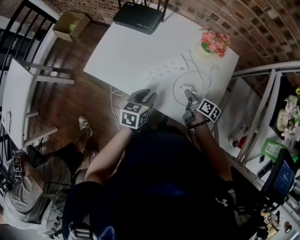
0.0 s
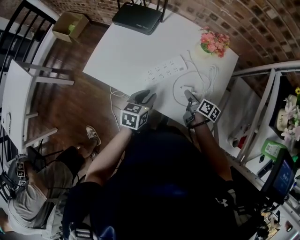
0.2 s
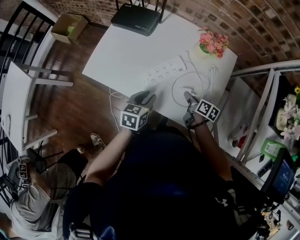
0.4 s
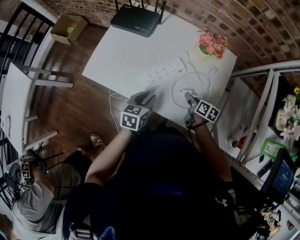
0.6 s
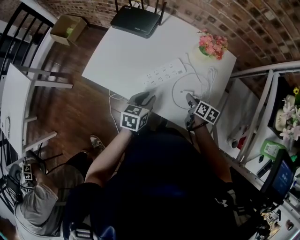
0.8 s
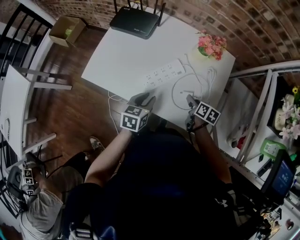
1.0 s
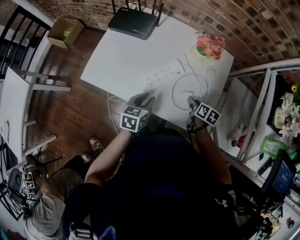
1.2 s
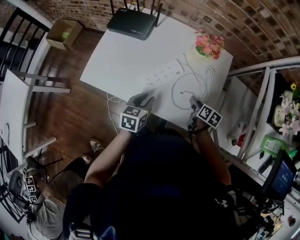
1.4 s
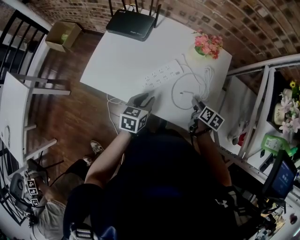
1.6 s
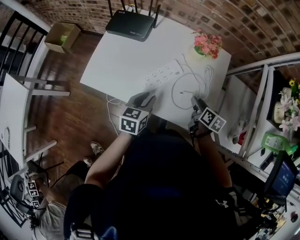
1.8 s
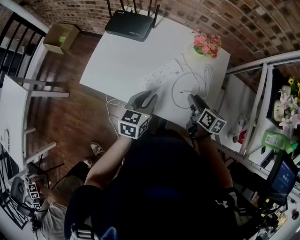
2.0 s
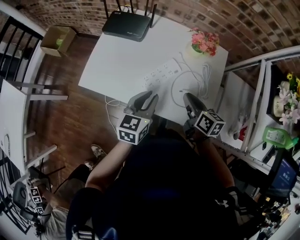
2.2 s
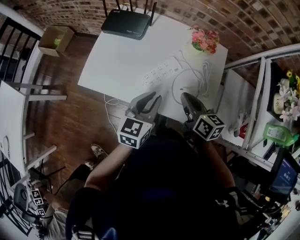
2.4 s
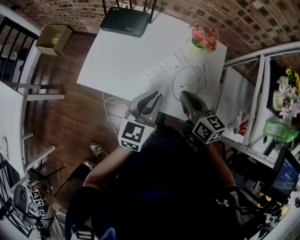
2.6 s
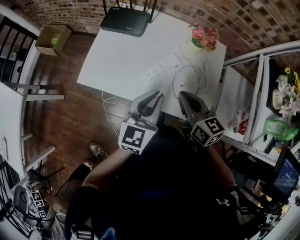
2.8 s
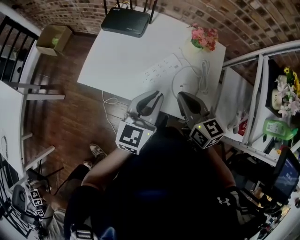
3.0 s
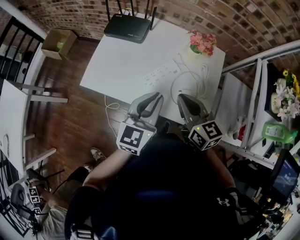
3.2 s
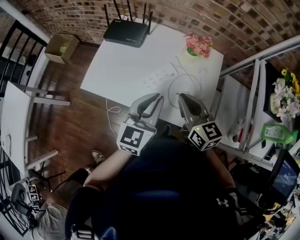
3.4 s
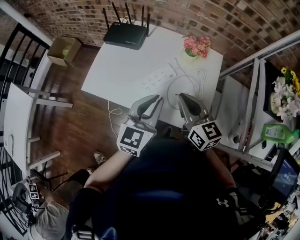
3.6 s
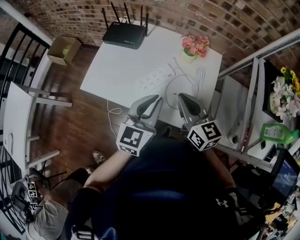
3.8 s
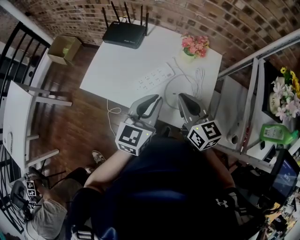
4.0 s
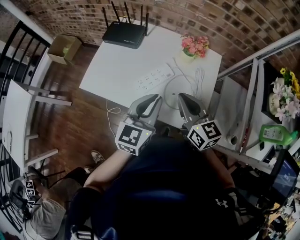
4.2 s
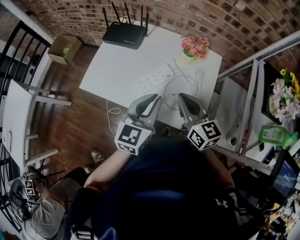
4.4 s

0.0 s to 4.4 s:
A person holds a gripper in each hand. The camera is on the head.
0.0 to 1.4 s: The right gripper travels to the right by roughly 5 cm, and changes its angle by approximately 20 degrees.
1.4 to 3.0 s: The left gripper travels upward by some 15 cm, and changes its angle by about 30 degrees; the right gripper travels upward and to the left by some 30 cm, tips its fingers upward by roughly 30 degrees, and closes its fingers.
3.0 to 4.4 s: Both grippers move to the right, approximately 5 cm.

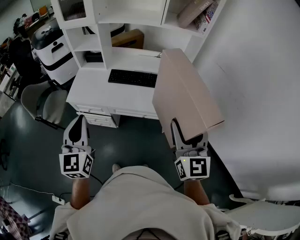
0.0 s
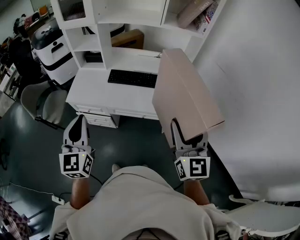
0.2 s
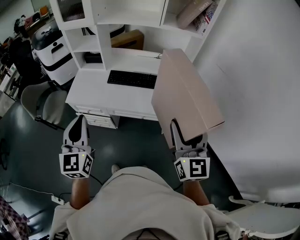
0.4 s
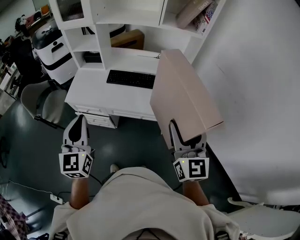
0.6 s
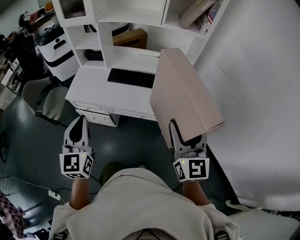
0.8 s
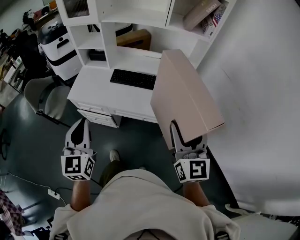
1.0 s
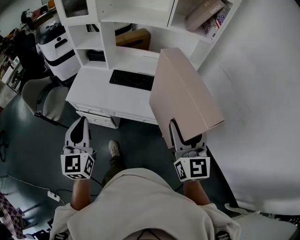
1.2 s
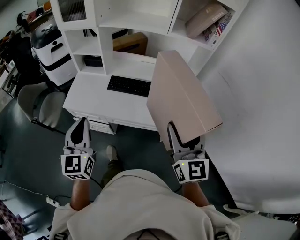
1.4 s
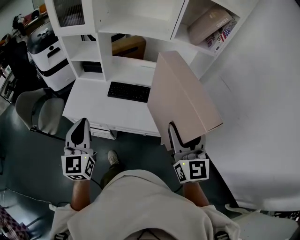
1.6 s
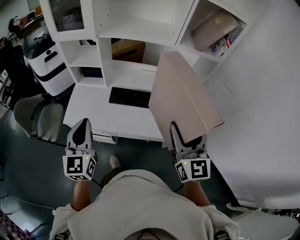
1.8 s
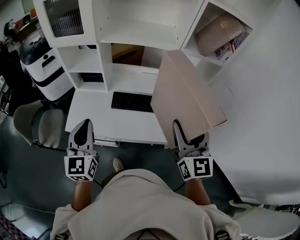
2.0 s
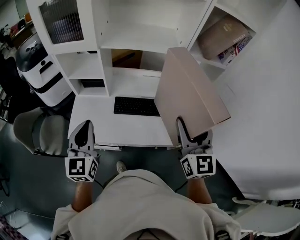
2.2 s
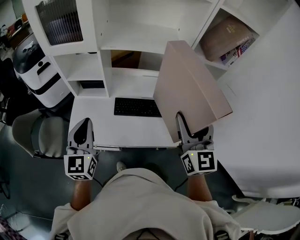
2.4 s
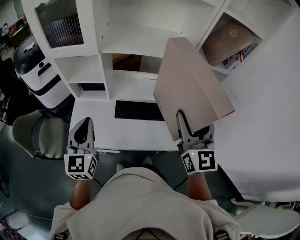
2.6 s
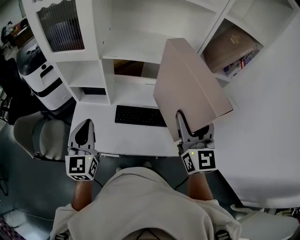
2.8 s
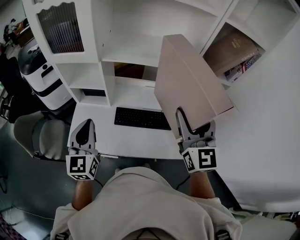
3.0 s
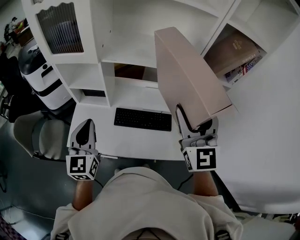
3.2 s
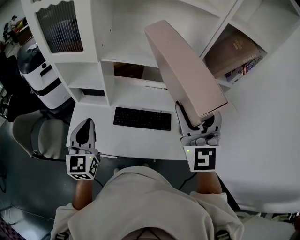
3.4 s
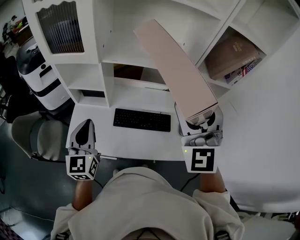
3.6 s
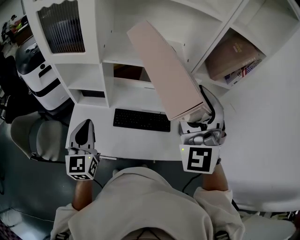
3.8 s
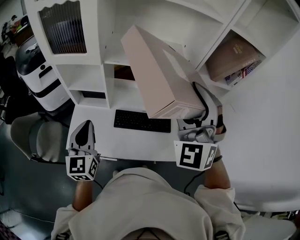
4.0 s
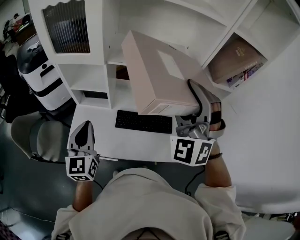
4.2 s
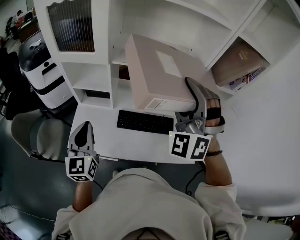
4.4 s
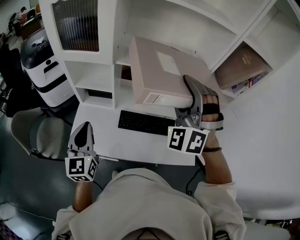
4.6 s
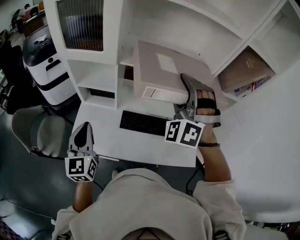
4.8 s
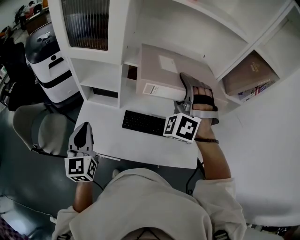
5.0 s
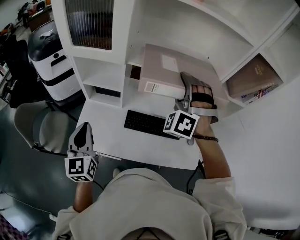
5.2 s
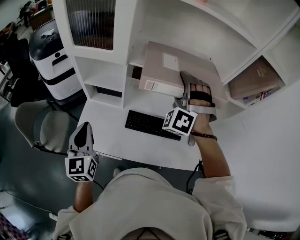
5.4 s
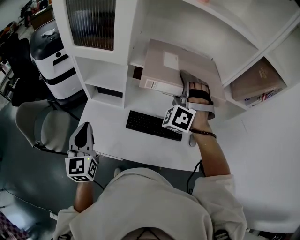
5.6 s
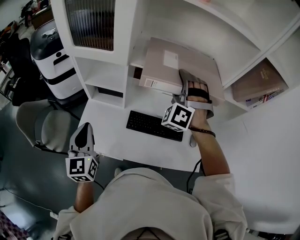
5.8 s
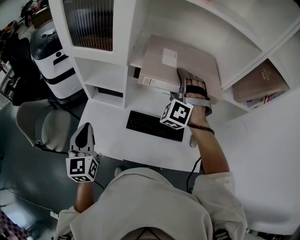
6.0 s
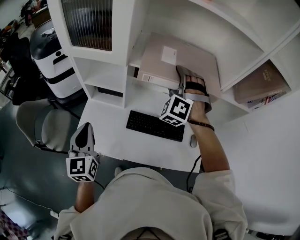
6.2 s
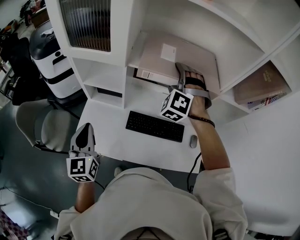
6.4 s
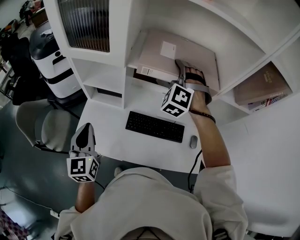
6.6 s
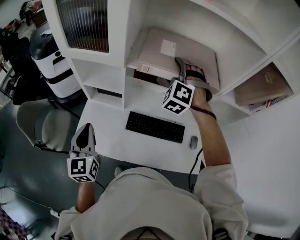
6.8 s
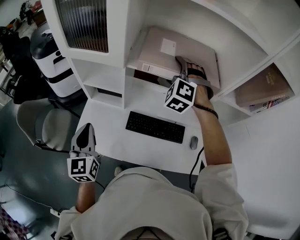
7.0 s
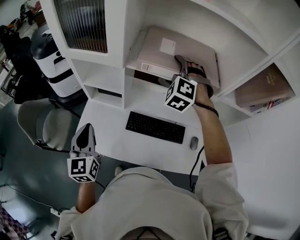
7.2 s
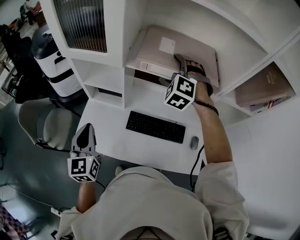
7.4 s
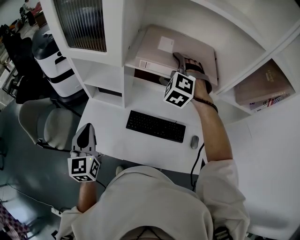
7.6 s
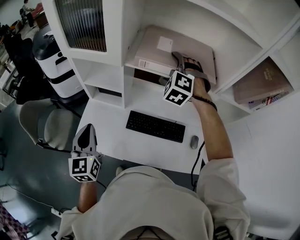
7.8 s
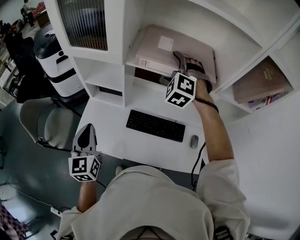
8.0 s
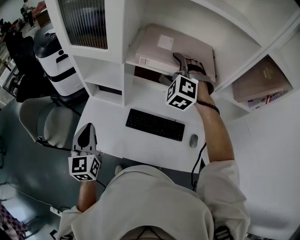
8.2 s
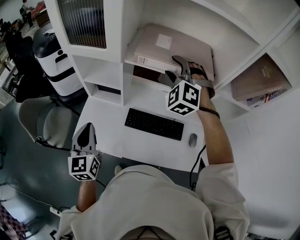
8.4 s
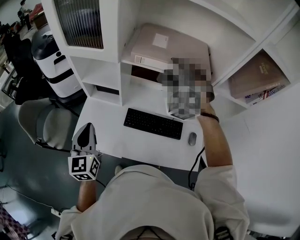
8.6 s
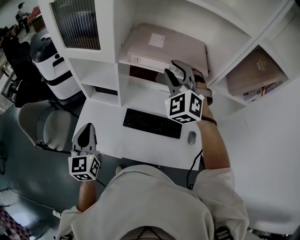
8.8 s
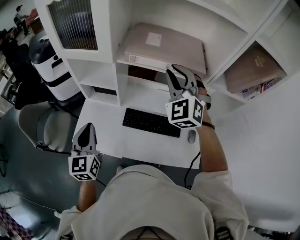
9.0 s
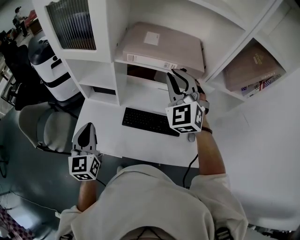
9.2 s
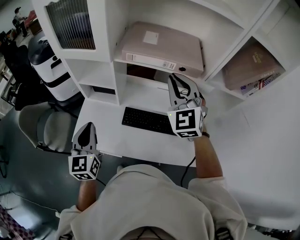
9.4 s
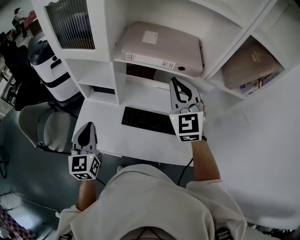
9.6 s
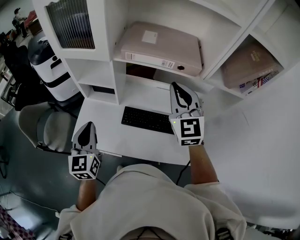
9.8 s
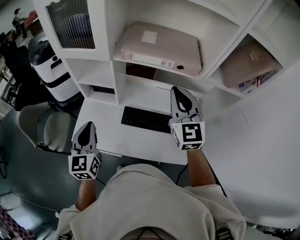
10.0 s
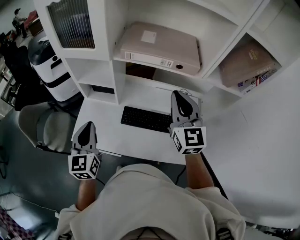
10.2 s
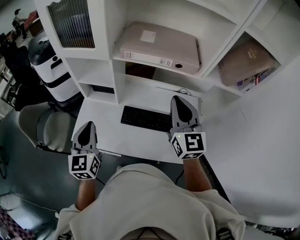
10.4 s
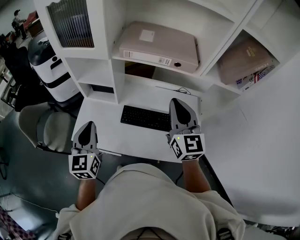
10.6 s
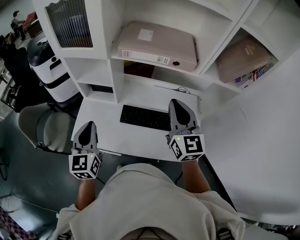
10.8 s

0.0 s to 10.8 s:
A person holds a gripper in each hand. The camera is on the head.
0.0 to 1.6 s: Both grippers move forward, about 15 cm.
1.6 to 3.0 s: Both grippers travel together forward, some 25 cm.
3.0 to 4.6 s: The left gripper is displaced to the left by some 5 cm. The right gripper moves to the left and forward, roughly 15 cm, and twists about 70 degrees counterclockwise, seen from behind.
4.6 to 6.2 s: The right gripper travels forward and downward by approximately 20 cm.
6.2 to 7.8 s: The grippers stay close to where they were, moving slightly.
7.8 to 9.2 s: The right gripper is displaced backward and upward by some 15 cm, turns by approximately 40 degrees, and closes its fingers.
9.2 to 10.8 s: The right gripper moves backward, approximately 10 cm, and rolls clockwise, seen from behind, by roughly 40 degrees.

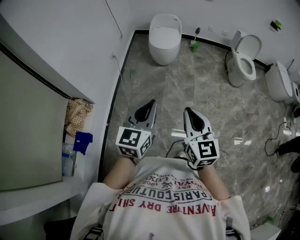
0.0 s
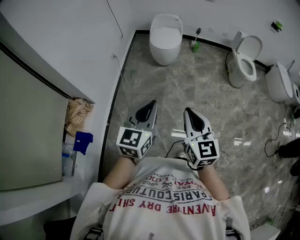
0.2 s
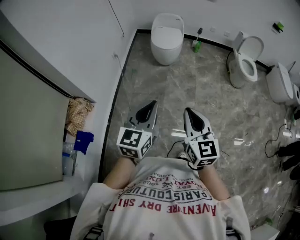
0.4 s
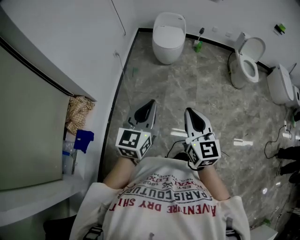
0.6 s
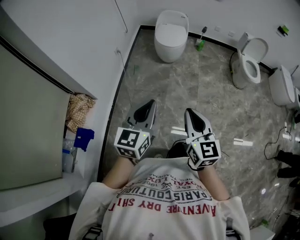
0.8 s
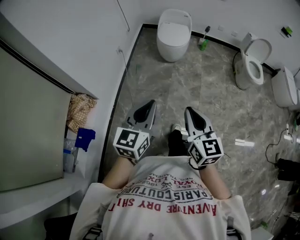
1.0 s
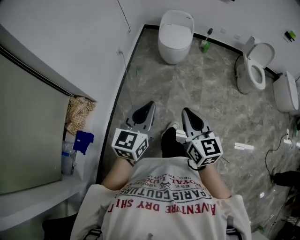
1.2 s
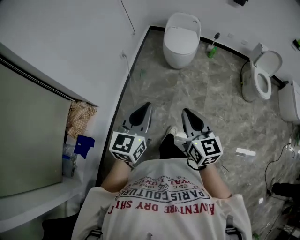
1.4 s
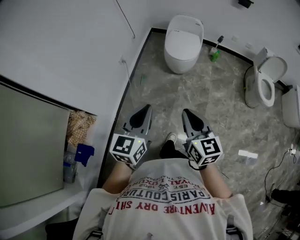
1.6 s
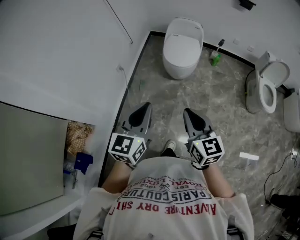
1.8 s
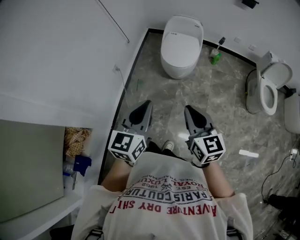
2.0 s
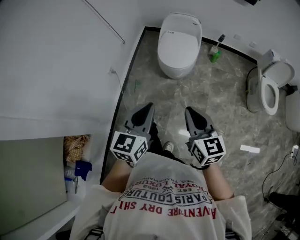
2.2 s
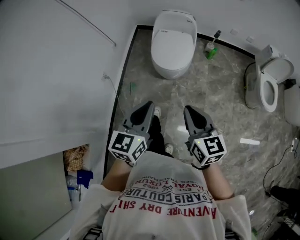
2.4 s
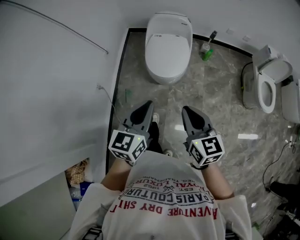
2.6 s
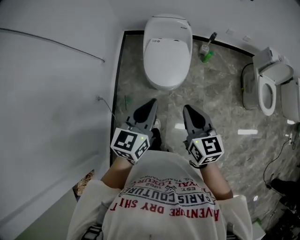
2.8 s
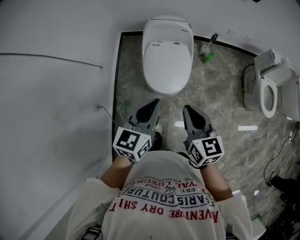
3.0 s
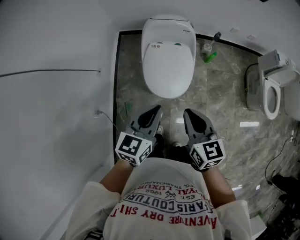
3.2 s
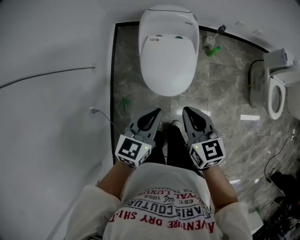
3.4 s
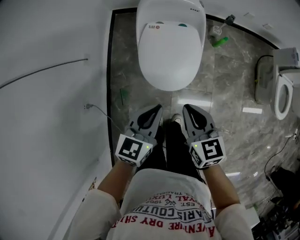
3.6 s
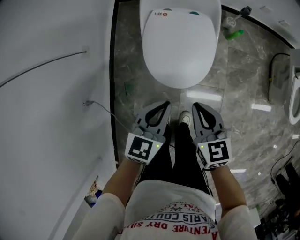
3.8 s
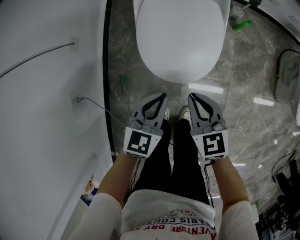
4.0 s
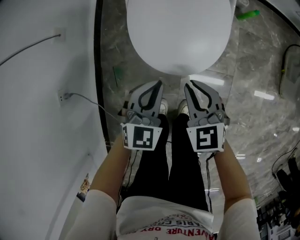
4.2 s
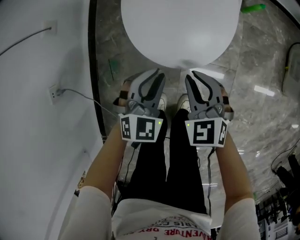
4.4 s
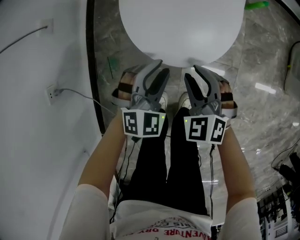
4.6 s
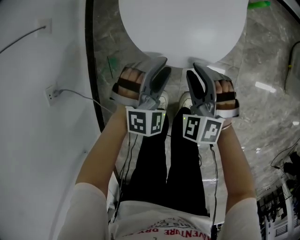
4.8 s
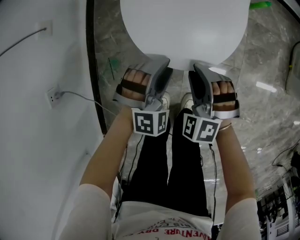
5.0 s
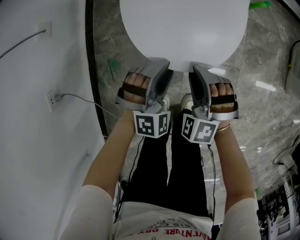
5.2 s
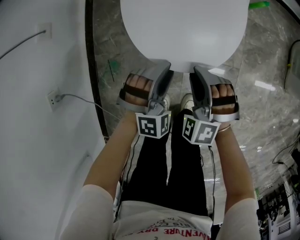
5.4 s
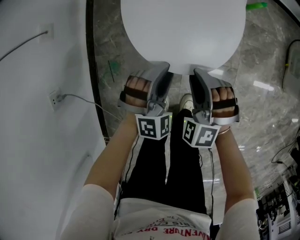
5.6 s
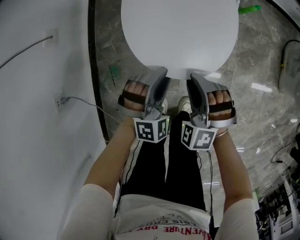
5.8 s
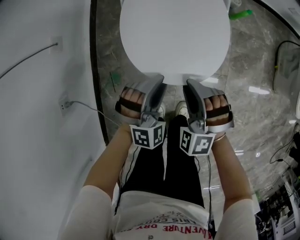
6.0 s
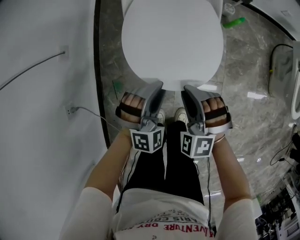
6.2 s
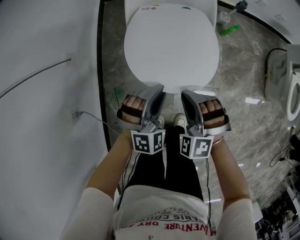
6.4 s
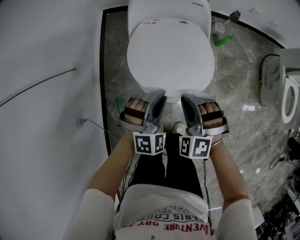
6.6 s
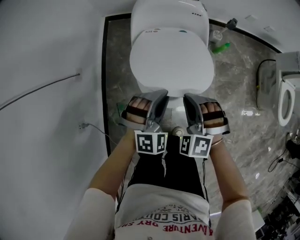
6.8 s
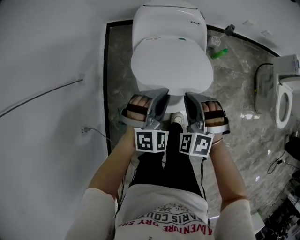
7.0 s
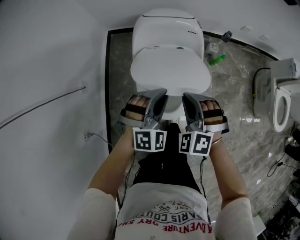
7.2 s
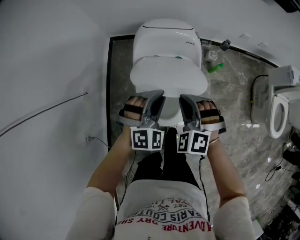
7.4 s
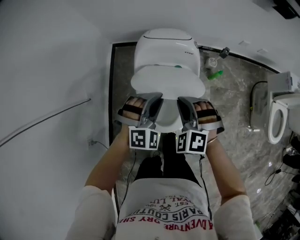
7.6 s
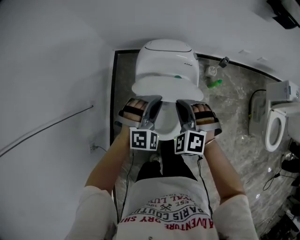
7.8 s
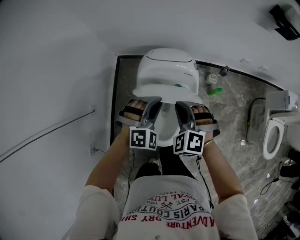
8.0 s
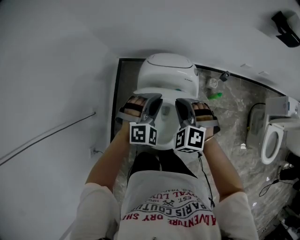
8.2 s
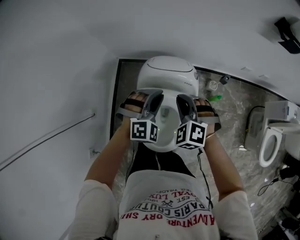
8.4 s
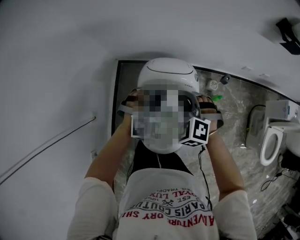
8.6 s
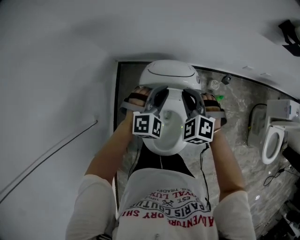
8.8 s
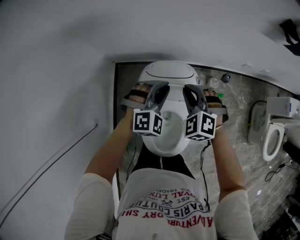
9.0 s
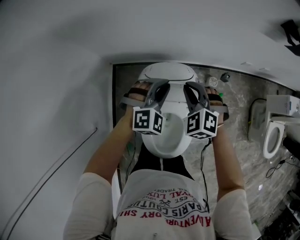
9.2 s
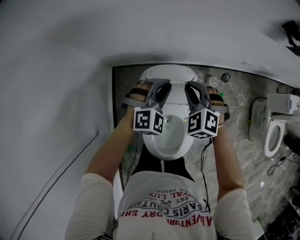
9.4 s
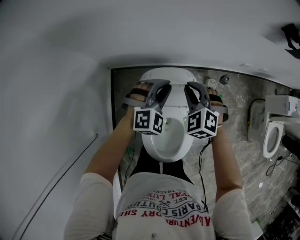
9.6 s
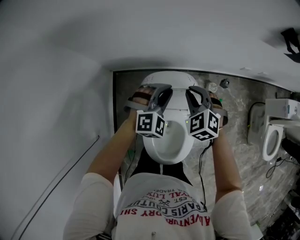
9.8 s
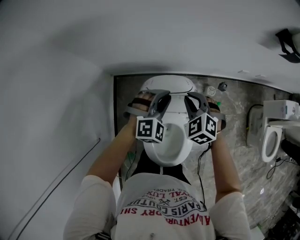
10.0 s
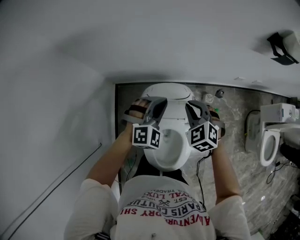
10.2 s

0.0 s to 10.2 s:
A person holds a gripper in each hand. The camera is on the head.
0.0 to 1.4 s: Both grippers travel together forward, some 15 cm.
1.4 to 3.0 s: The two grippers travel together, forward, approximately 70 cm.
3.0 to 4.4 s: The grippers both shift downward by about 50 cm. The left gripper swivels roughly 40 degrees. The right gripper turns by some 40 degrees.
4.4 to 5.8 s: The right gripper changes its angle by about 40 degrees, and opens; the left gripper rotates approximately 30 degrees.
5.8 to 7.2 s: The grippers both shift upward and forward by approximately 30 cm.
7.2 to 8.8 s: Both grippers travel together forward, some 30 cm.
8.8 to 10.2 s: Both grippers move forward, approximately 5 cm.
